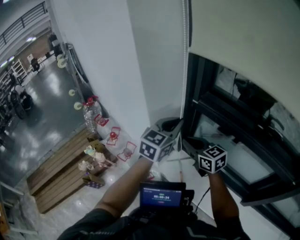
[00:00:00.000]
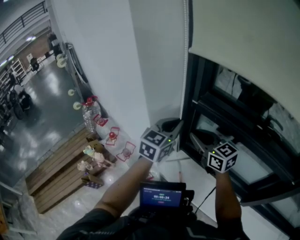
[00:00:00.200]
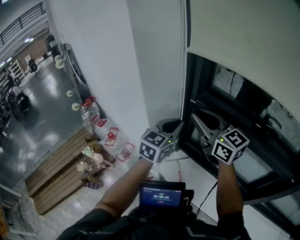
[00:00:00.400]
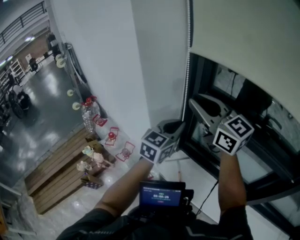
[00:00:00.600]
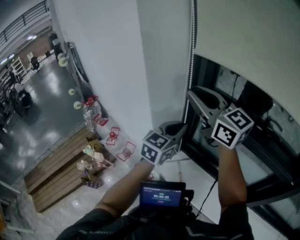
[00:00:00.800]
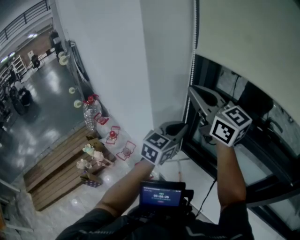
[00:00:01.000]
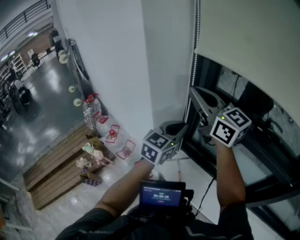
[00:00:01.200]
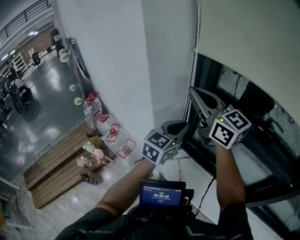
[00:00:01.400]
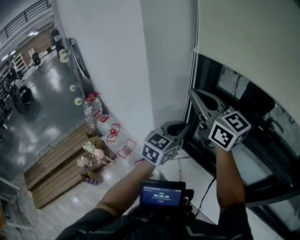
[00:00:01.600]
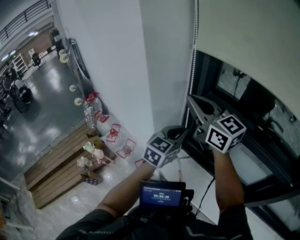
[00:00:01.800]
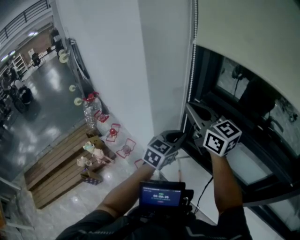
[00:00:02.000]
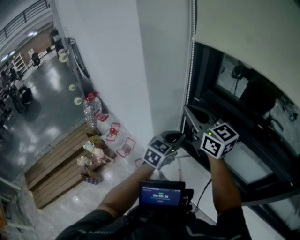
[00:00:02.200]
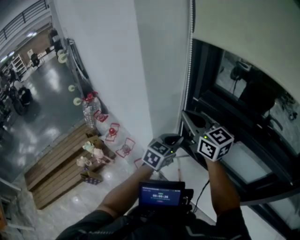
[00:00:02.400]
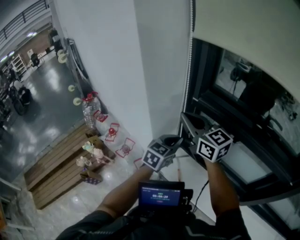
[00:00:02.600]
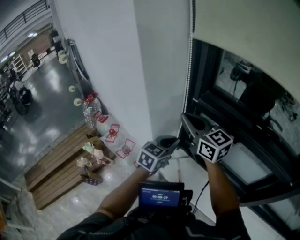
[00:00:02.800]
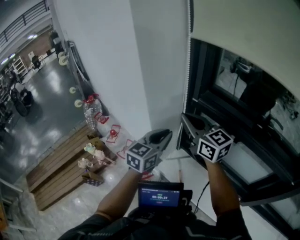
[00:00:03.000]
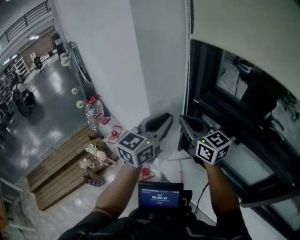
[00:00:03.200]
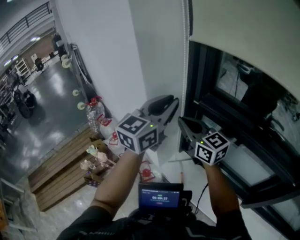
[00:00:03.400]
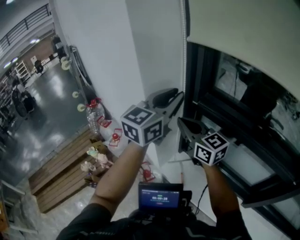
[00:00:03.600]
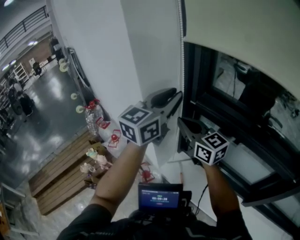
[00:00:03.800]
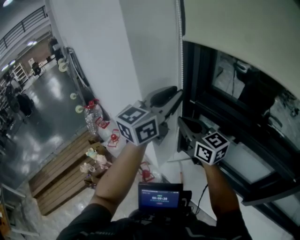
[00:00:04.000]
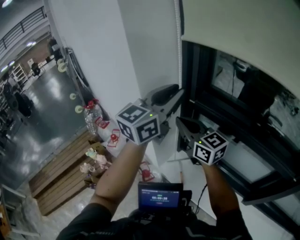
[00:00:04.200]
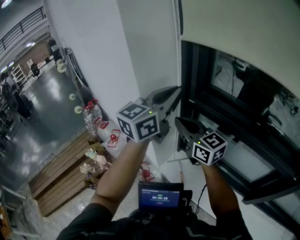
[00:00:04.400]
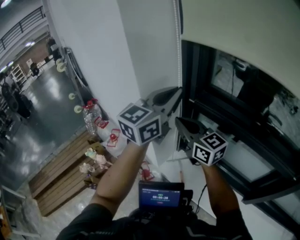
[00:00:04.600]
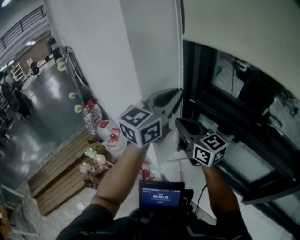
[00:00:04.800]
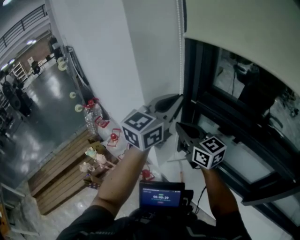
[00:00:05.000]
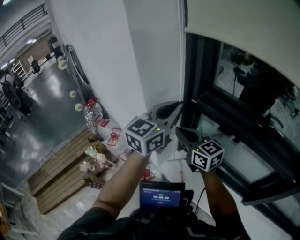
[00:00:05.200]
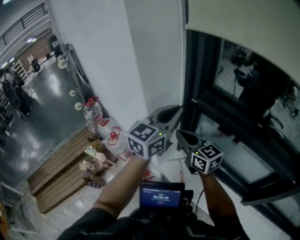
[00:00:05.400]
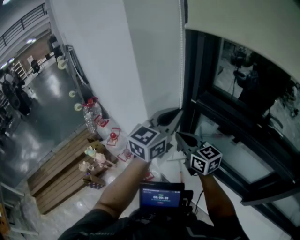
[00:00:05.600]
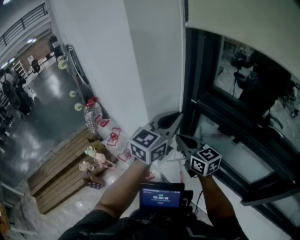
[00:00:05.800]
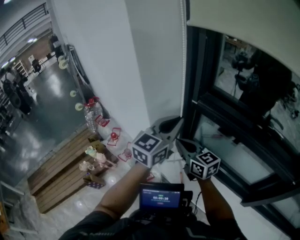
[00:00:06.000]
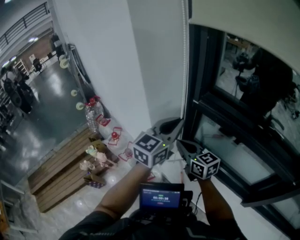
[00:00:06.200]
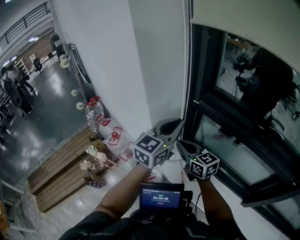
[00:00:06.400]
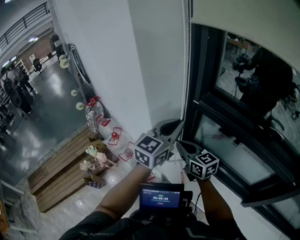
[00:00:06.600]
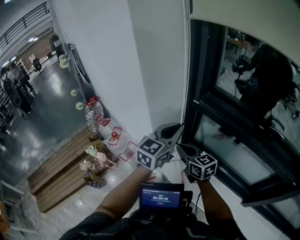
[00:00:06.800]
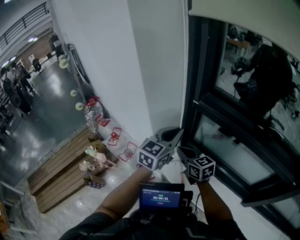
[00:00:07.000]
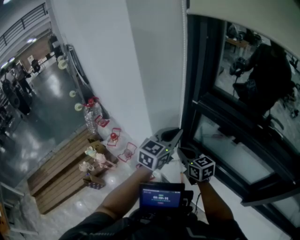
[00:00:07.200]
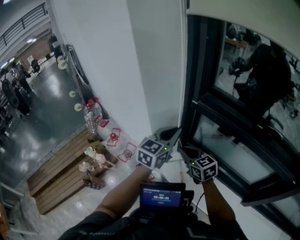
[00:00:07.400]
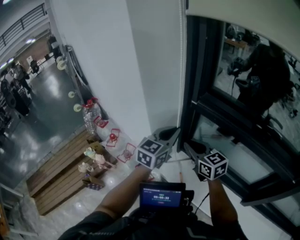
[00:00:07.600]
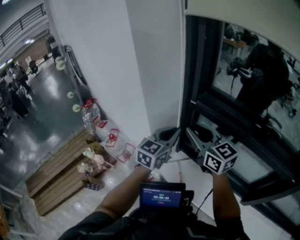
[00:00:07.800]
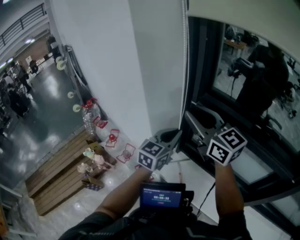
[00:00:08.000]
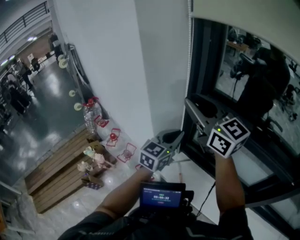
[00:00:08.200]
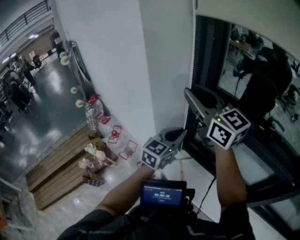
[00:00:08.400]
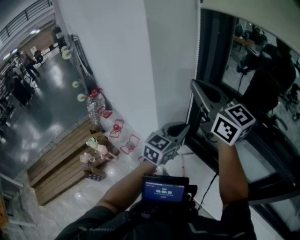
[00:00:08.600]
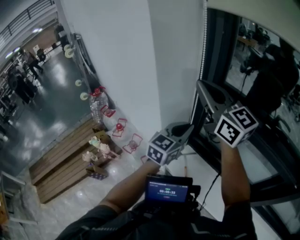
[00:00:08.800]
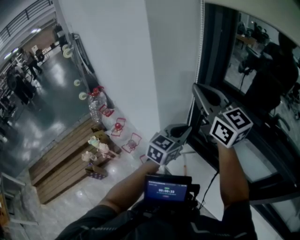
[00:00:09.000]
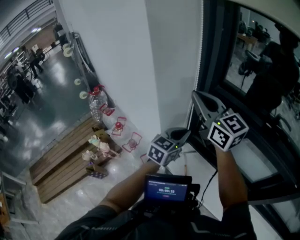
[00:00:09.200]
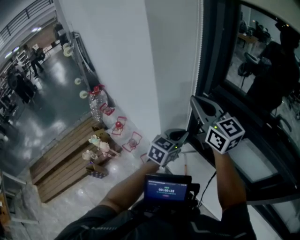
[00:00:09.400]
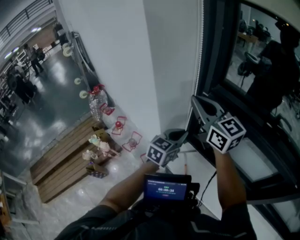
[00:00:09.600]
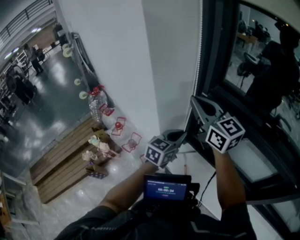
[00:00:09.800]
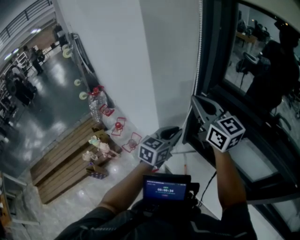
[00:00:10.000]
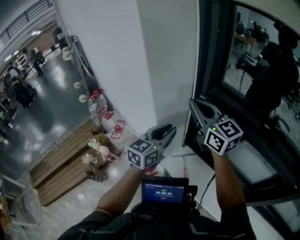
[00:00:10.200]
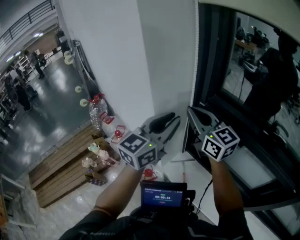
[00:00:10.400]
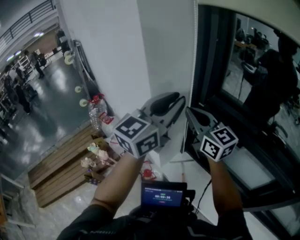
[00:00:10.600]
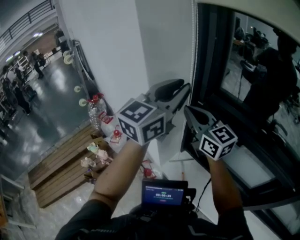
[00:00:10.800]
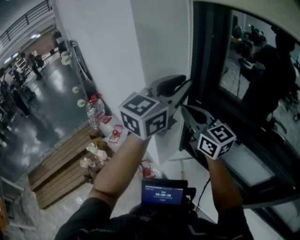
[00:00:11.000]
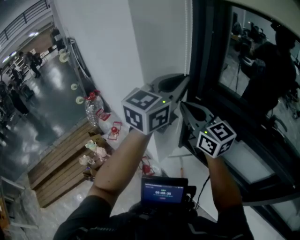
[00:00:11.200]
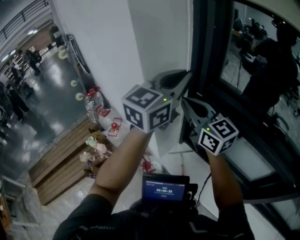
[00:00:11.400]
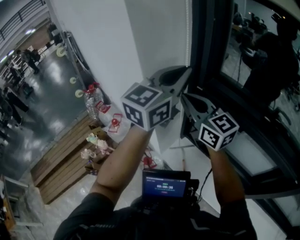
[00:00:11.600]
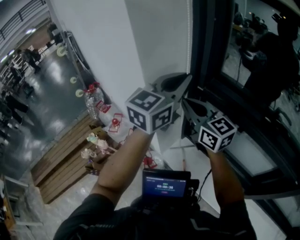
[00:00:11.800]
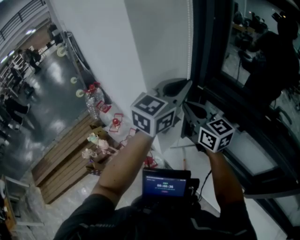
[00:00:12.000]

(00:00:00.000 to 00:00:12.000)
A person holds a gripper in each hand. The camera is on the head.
00:00:00.000 - 00:00:01.600: The right gripper heads upward, covering roughly 25 cm, and rotates roughly 30 degrees.
00:00:01.600 - 00:00:03.000: The right gripper heads downward, covering some 10 cm. The left gripper goes roughly 5 cm to the left.
00:00:03.000 - 00:00:04.400: The left gripper shifts approximately 20 cm upward, and swivels approximately 20 degrees.
00:00:04.400 - 00:00:06.000: The grippers both shift downward by roughly 10 cm.
00:00:06.000 - 00:00:07.600: The right gripper moves about 10 cm downward and comes back. The left gripper heads downward, covering some 10 cm.
00:00:07.600 - 00:00:09.000: The right gripper travels upward by roughly 20 cm, and turns by approximately 20 degrees.
00:00:09.000 - 00:00:10.400: The left gripper is displaced upward and to the left by some 15 cm. Meanwhile the right gripper travels downward by some 5 cm.
00:00:10.400 - 00:00:12.000: The right gripper travels downward by approximately 5 cm. Meanwhile the left gripper goes some 10 cm forward and to the right, and moves about 10 cm upward and comes back.

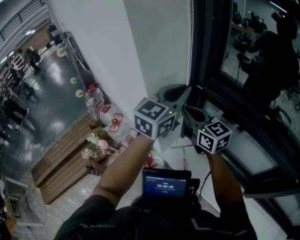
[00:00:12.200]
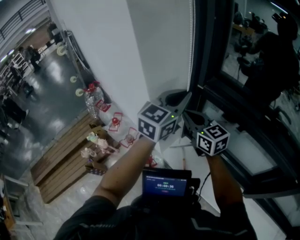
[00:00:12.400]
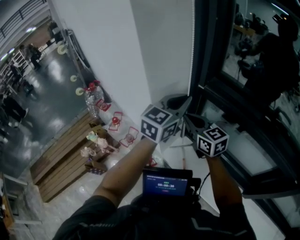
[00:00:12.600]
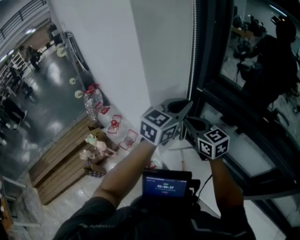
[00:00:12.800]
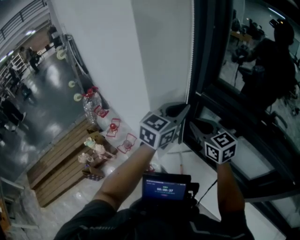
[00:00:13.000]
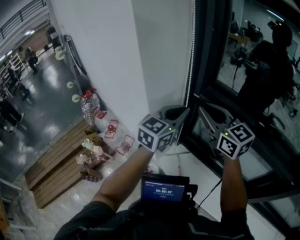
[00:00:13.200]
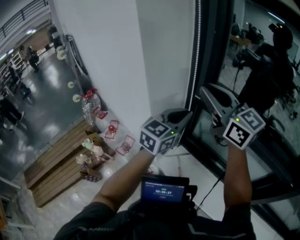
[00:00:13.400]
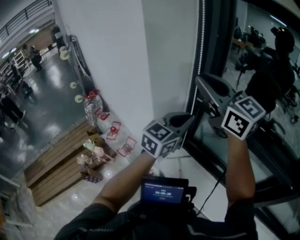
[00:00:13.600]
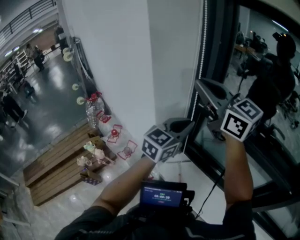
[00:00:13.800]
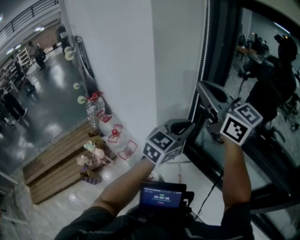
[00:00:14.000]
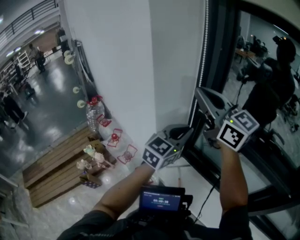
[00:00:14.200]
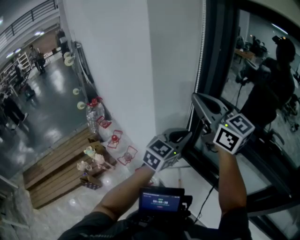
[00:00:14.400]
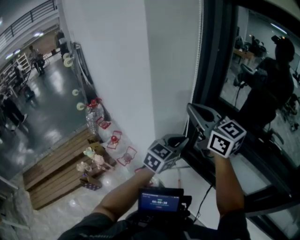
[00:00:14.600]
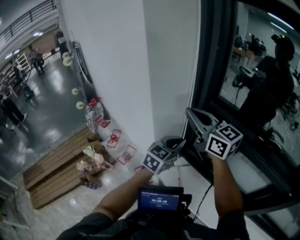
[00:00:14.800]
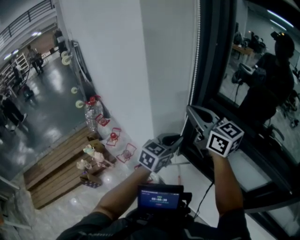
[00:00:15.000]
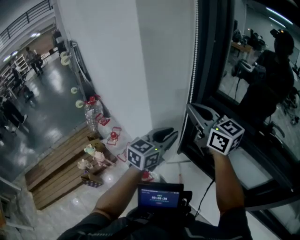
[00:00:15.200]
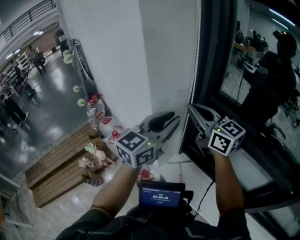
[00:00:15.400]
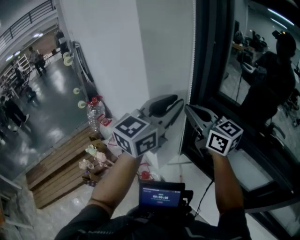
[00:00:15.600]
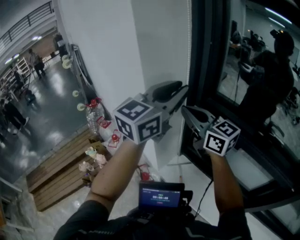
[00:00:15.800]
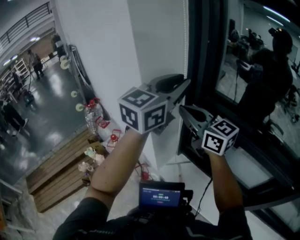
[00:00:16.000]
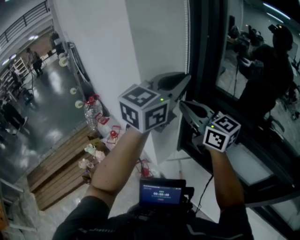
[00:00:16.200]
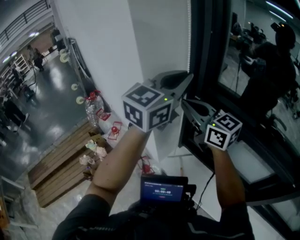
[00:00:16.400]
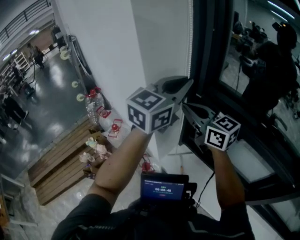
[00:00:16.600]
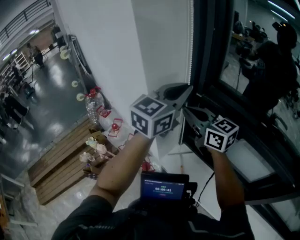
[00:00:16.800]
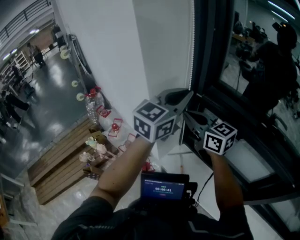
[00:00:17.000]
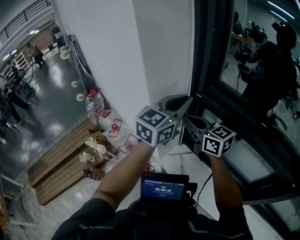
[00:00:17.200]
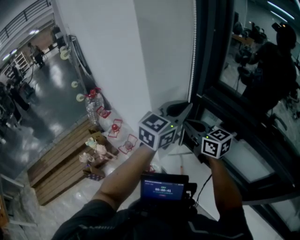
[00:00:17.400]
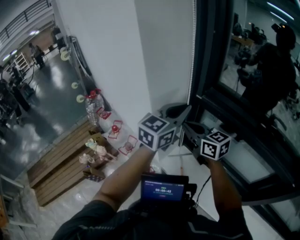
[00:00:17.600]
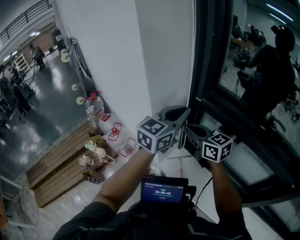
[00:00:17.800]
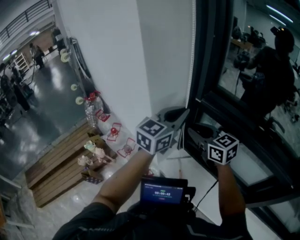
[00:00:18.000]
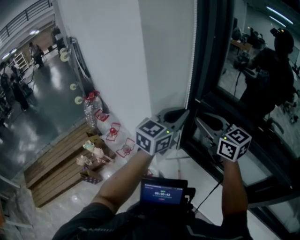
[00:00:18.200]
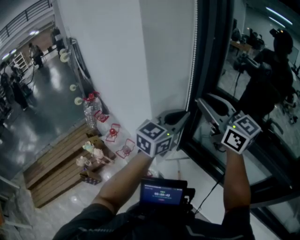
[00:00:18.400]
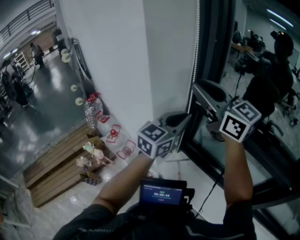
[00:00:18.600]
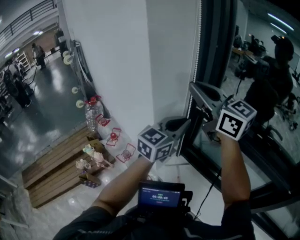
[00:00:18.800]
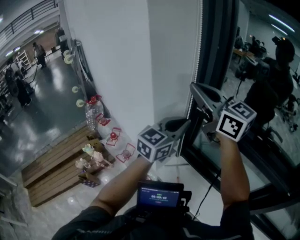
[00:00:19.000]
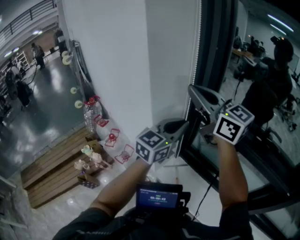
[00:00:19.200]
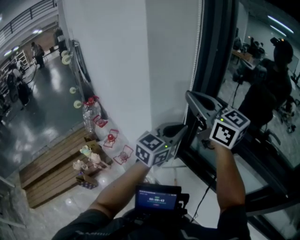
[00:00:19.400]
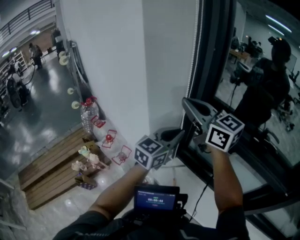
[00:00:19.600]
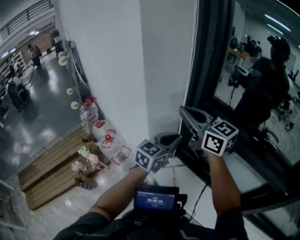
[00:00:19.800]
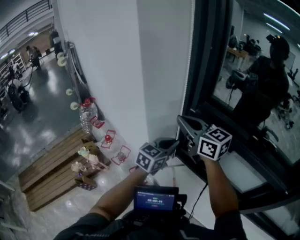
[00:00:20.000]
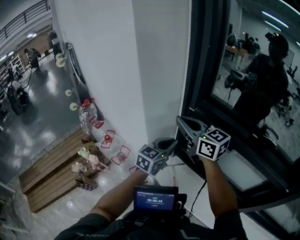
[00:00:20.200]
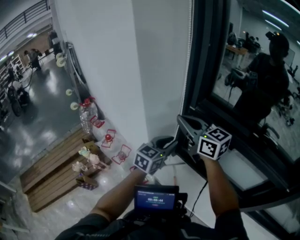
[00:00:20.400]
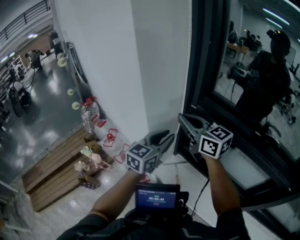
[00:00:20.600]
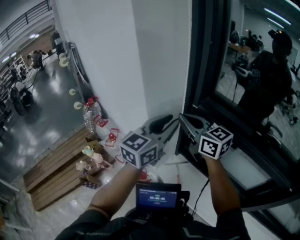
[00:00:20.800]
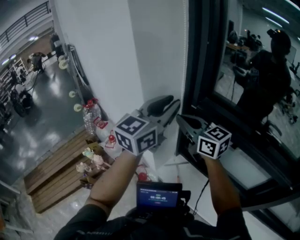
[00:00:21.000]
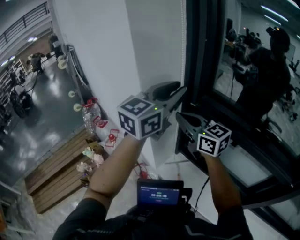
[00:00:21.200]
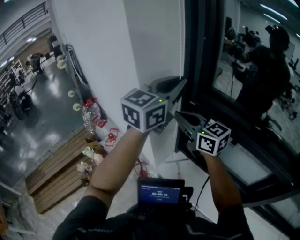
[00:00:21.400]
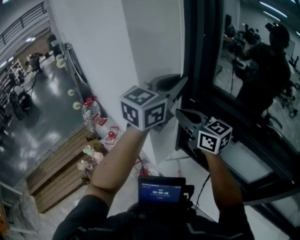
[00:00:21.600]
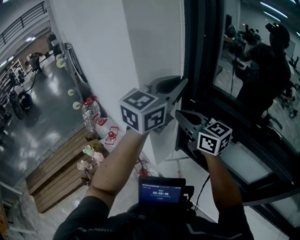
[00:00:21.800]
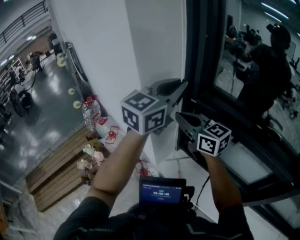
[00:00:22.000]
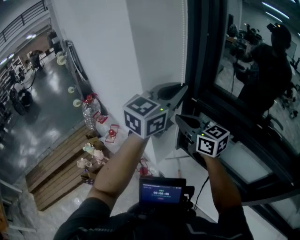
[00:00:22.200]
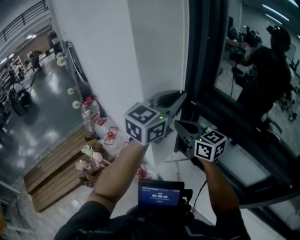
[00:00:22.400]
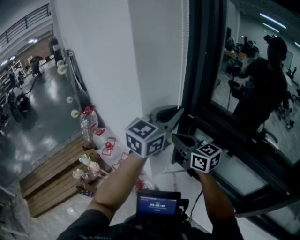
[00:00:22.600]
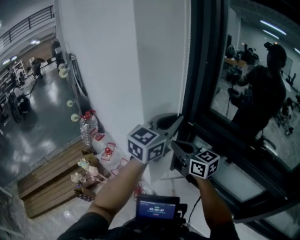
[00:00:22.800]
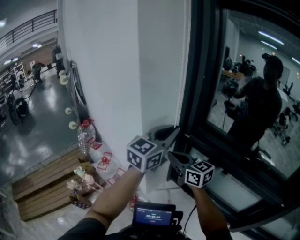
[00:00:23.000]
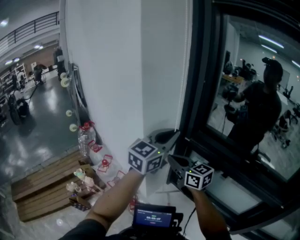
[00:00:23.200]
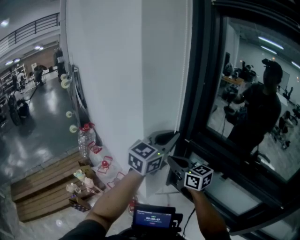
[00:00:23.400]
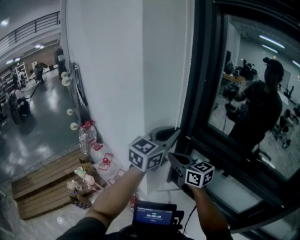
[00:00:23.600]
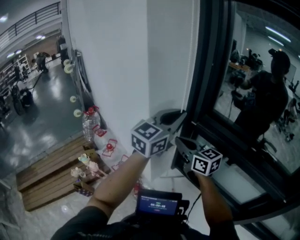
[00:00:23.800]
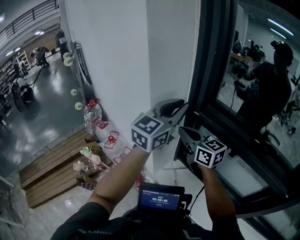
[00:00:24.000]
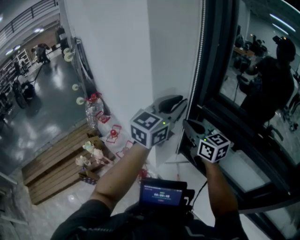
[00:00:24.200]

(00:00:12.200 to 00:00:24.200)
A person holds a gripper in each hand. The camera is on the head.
00:00:12.200 - 00:00:13.800: The left gripper moves downward, some 5 cm. The right gripper goes some 20 cm upward.
00:00:13.800 - 00:00:15.200: The right gripper is displaced downward by roughly 10 cm. Meanwhile the left gripper travels downward by some 5 cm, and opens.
00:00:15.200 - 00:00:16.600: The left gripper shifts about 20 cm upward.
00:00:16.600 - 00:00:18.200: The left gripper is displaced downward by about 10 cm; the right gripper moves to the right, some 5 cm, travels downward and back again, approximately 10 cm each way, and opens up.
00:00:18.200 - 00:00:19.800: The left gripper is displaced downward by roughly 10 cm; the right gripper goes some 10 cm upward and to the left, and closes its fingers.
00:00:19.800 - 00:00:21.200: The right gripper is displaced downward by about 5 cm. The left gripper travels upward by roughly 20 cm, and opens.
00:00:21.200 - 00:00:22.600: The left gripper closes; the right gripper moves downward, some 5 cm.
00:00:22.600 - 00:00:24.200: The grippers move only a little.
